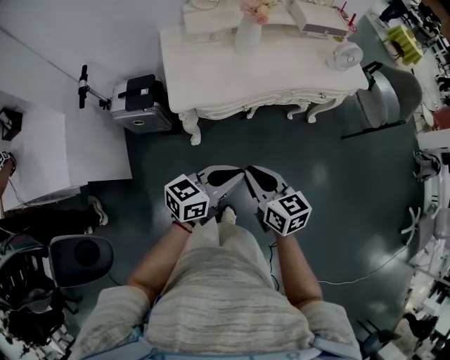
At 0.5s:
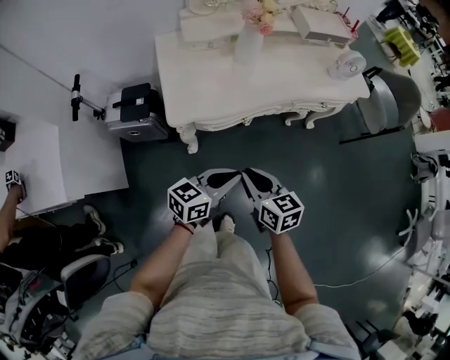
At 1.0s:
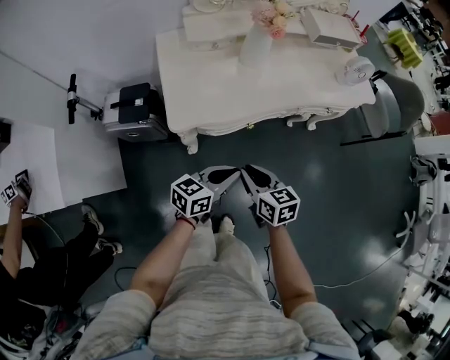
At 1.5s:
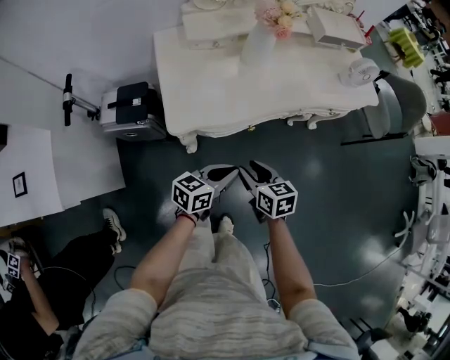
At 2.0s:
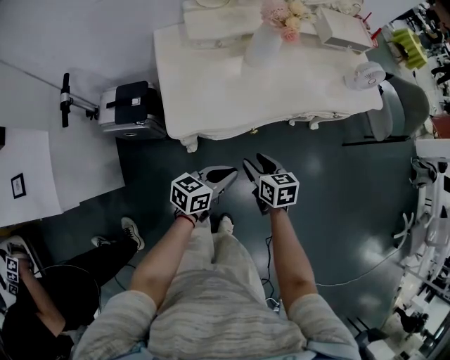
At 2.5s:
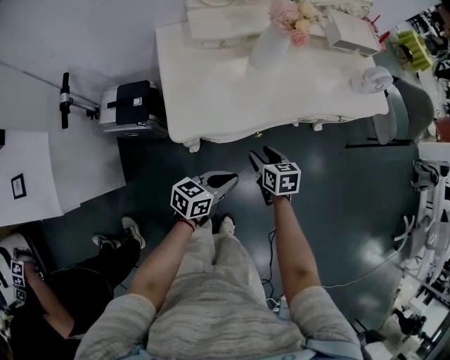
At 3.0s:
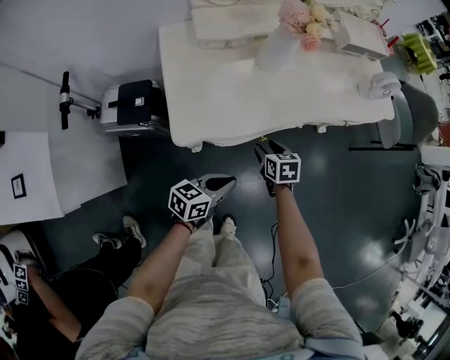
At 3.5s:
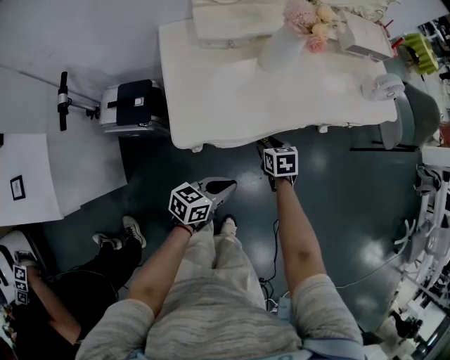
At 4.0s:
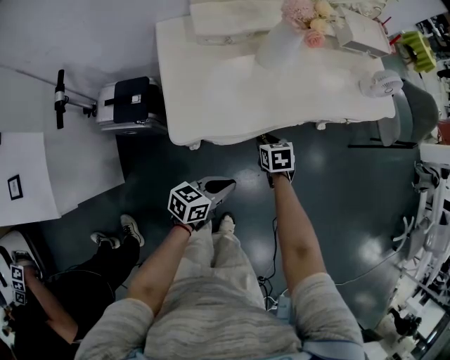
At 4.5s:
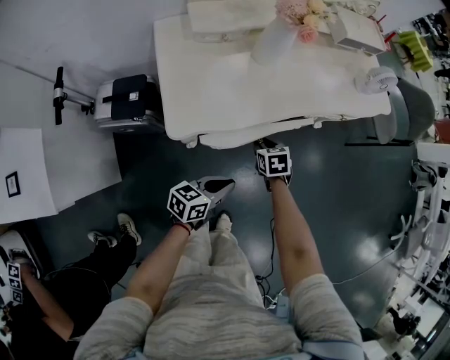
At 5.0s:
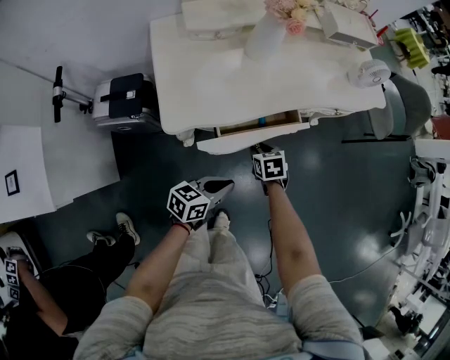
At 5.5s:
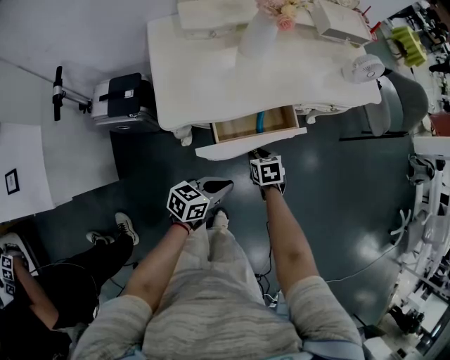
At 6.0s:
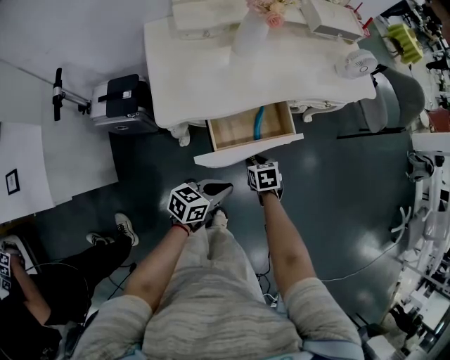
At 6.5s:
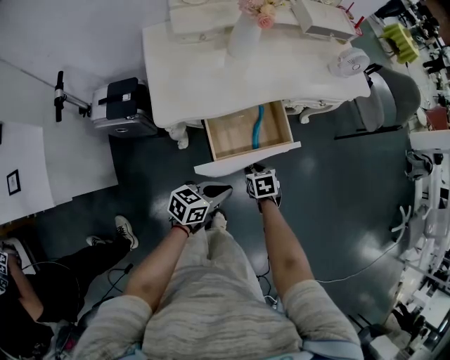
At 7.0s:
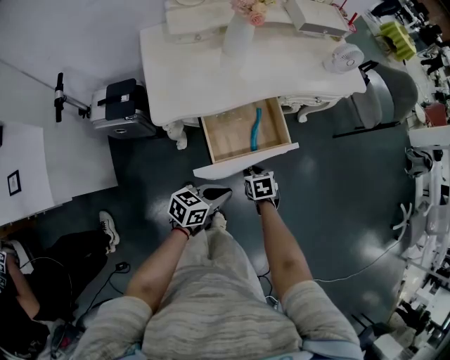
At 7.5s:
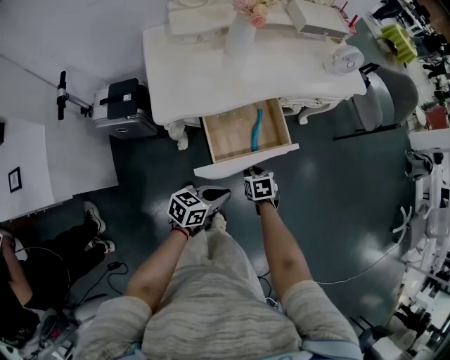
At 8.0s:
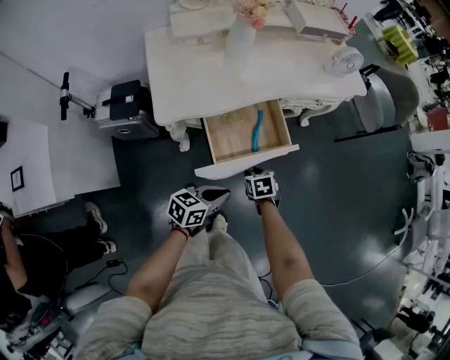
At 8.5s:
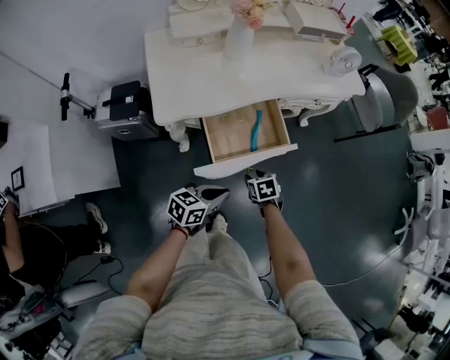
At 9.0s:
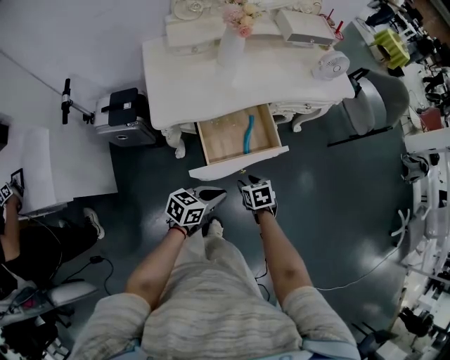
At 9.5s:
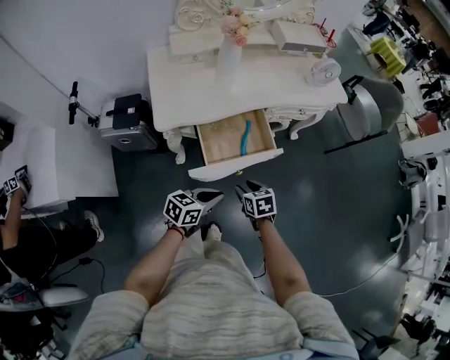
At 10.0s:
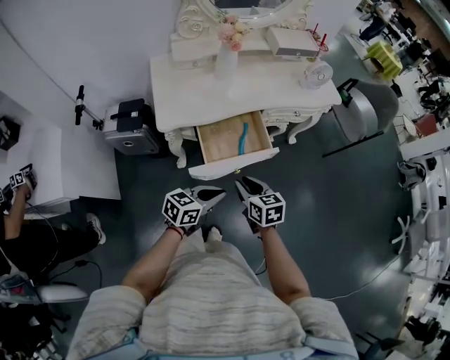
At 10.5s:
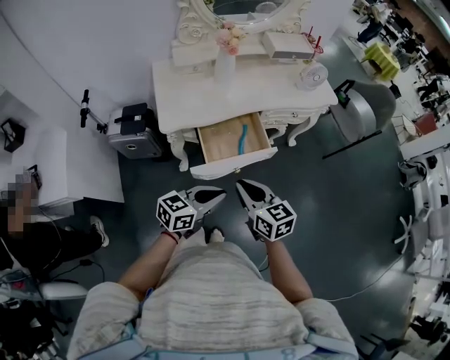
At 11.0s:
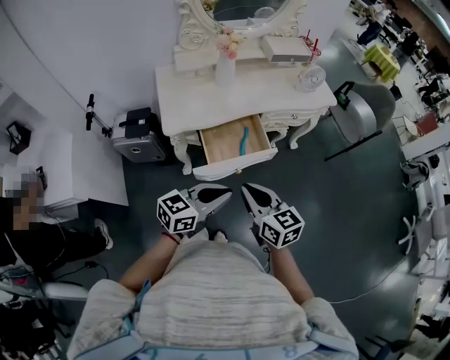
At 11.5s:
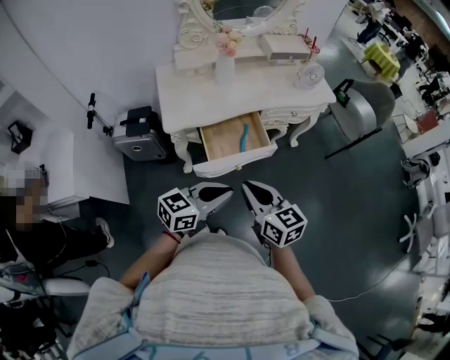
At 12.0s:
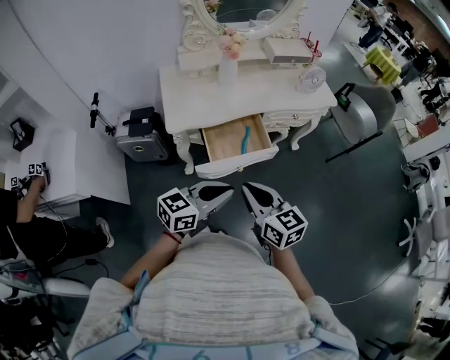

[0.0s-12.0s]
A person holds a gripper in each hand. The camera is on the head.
0.0s to 2.0s: The right gripper heads downward and forward, covering roughly 25 cm, and opens its fingers. The left gripper moves downward, forward and to the left, some 20 cm.
2.0s to 4.0s: The right gripper moves forward and downward, roughly 15 cm, and changes its angle by some 20 degrees, while the left gripper ends up about 5 cm from where it was.
4.0s to 6.0s: The left gripper is displaced to the right and backward by about 10 cm. The right gripper shifts some 15 cm backward and to the right.
6.0s to 8.0s: The right gripper changes place by some 5 cm.
8.0s to 10.0s: The right gripper is displaced upward by some 20 cm, and tilts its fingers some 30 degrees upward, while the left gripper shifts about 10 cm upward.
10.0s to 12.0s: The right gripper heads upward and backward, covering about 20 cm, turns by some 20 degrees, and closes up. Meanwhile the left gripper travels upward by approximately 15 cm.

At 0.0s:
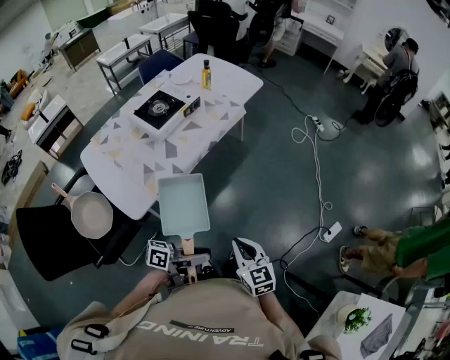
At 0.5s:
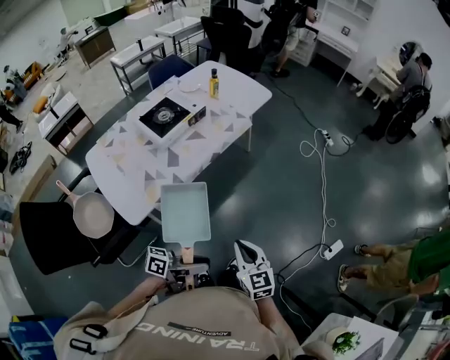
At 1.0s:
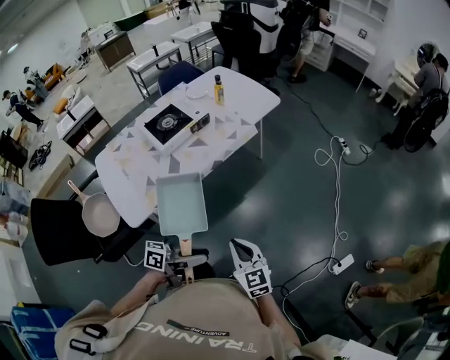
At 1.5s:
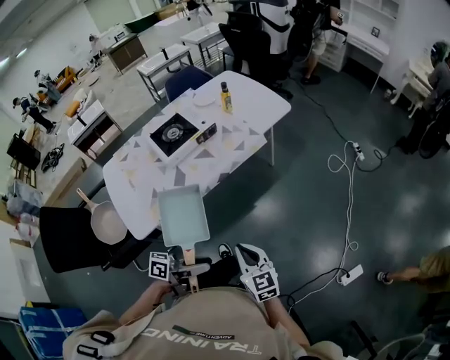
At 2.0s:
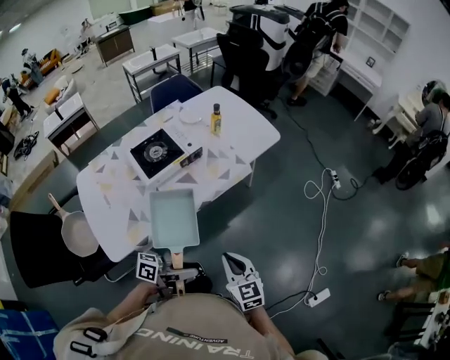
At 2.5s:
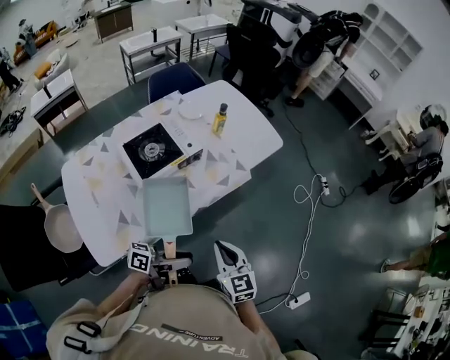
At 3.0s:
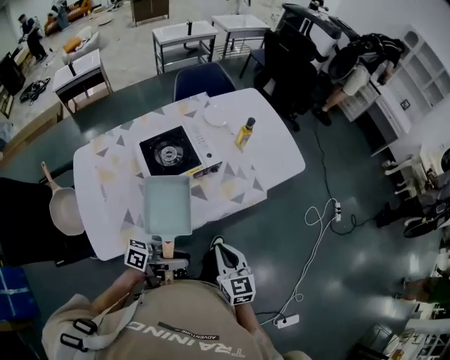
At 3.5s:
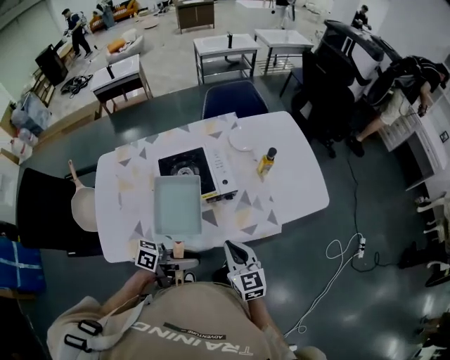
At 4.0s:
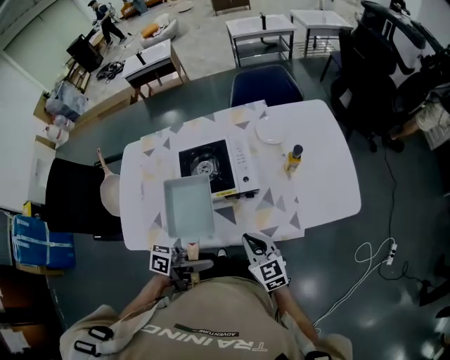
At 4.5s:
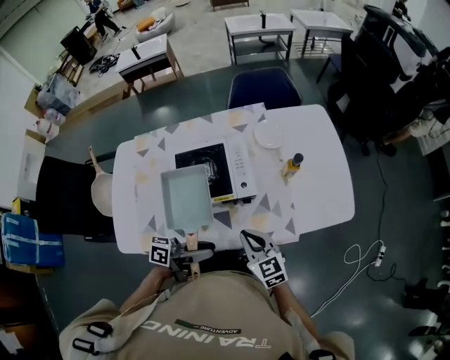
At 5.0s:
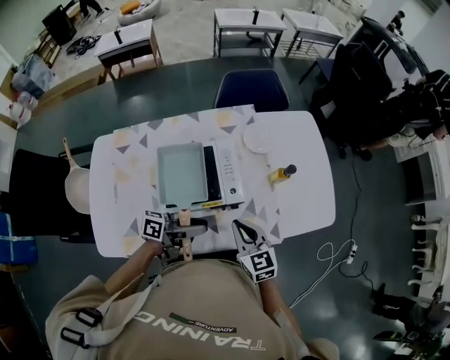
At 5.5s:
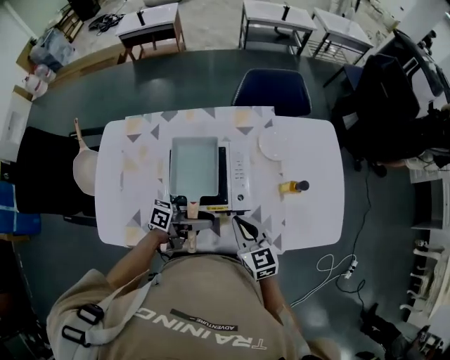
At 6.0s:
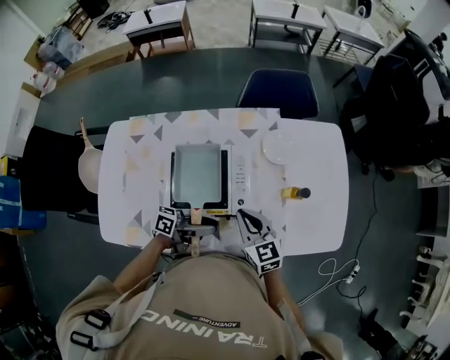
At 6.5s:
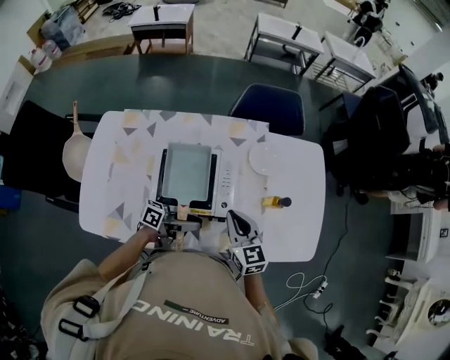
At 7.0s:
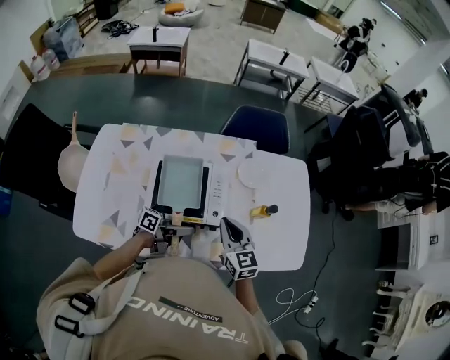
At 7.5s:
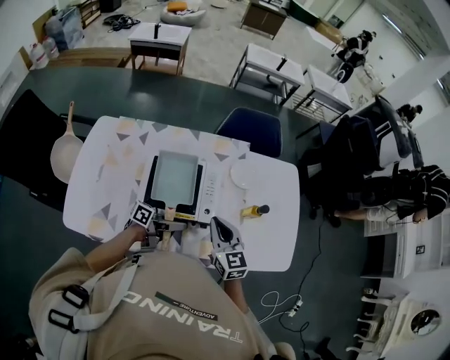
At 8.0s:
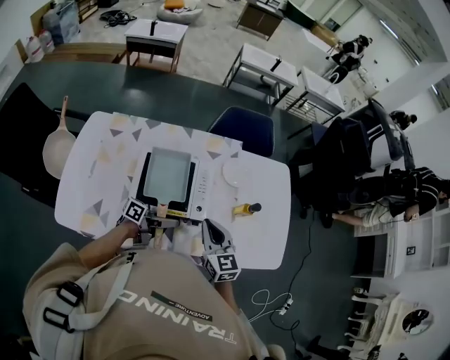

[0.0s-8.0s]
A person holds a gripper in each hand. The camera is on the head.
0.0s to 2.0s: The grippers both shift forward by roughly 25 cm.
2.0s to 4.0s: The left gripper ends up roughly 25 cm from where it was, and changes its angle by approximately 30 degrees. Meanwhile the right gripper changes place by about 35 cm, and rotates roughly 40 degrees.
4.0s to 6.0s: The grippers both shift forward by about 20 cm.
6.0s to 8.0s: The right gripper heads upward, covering some 5 cm.

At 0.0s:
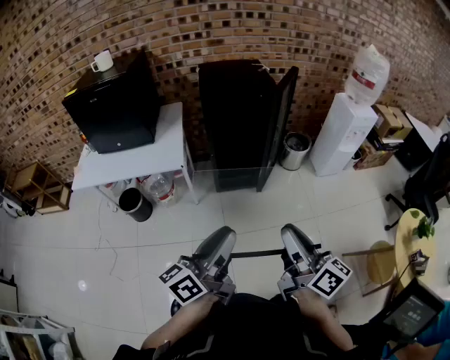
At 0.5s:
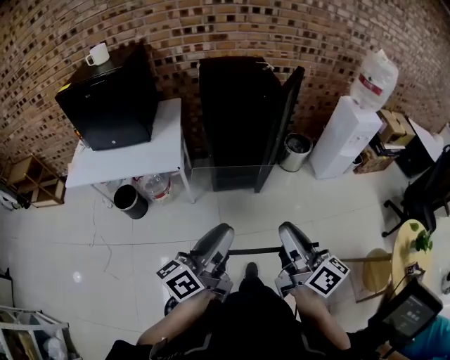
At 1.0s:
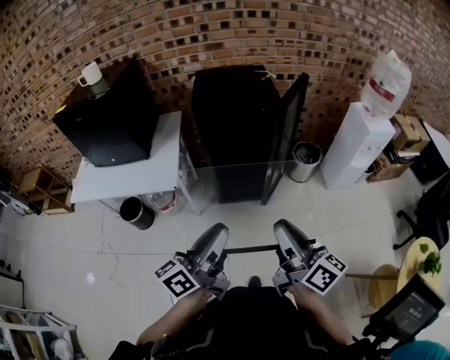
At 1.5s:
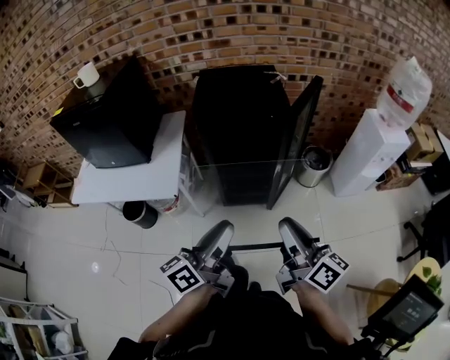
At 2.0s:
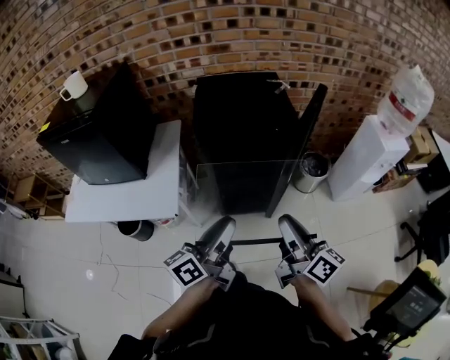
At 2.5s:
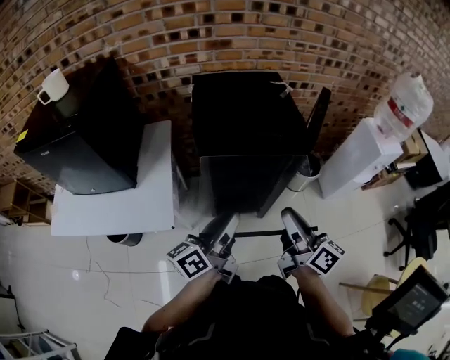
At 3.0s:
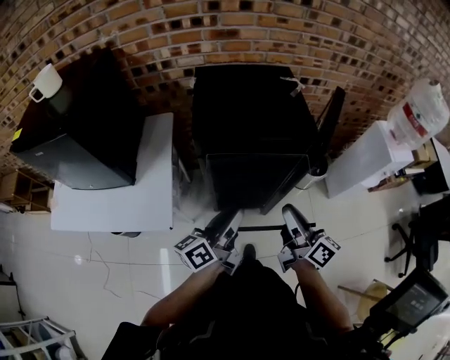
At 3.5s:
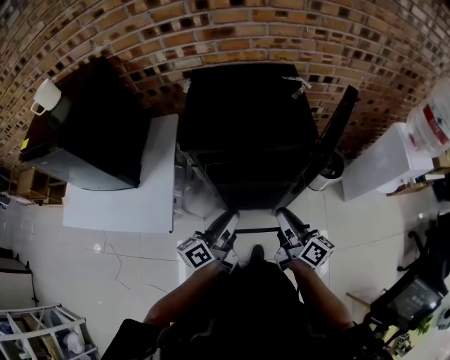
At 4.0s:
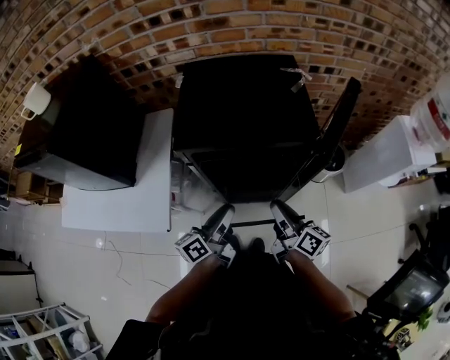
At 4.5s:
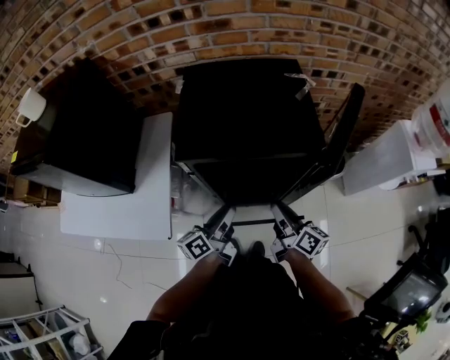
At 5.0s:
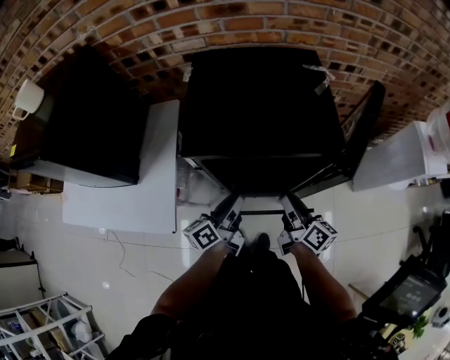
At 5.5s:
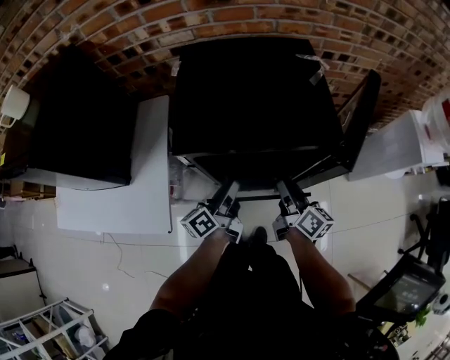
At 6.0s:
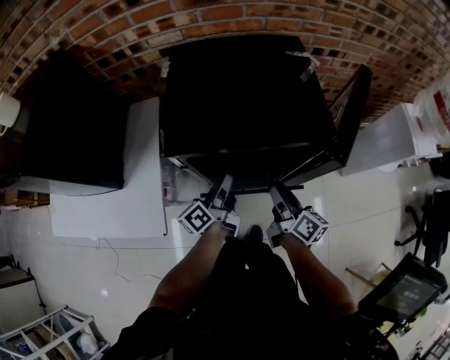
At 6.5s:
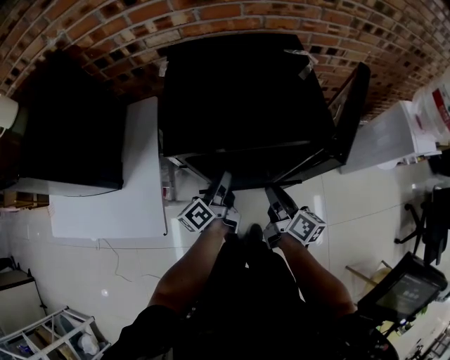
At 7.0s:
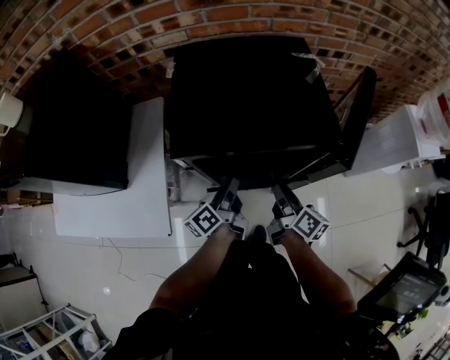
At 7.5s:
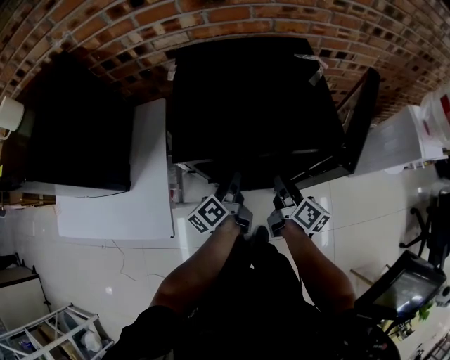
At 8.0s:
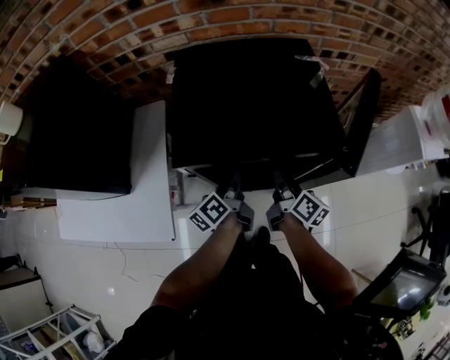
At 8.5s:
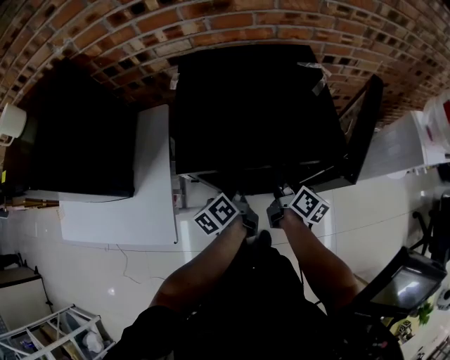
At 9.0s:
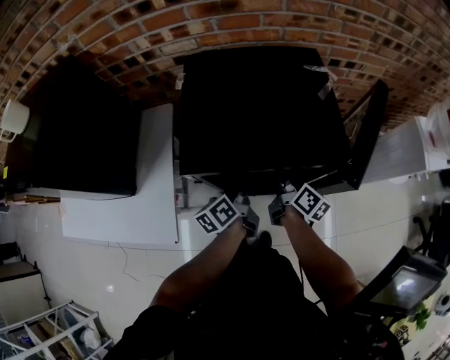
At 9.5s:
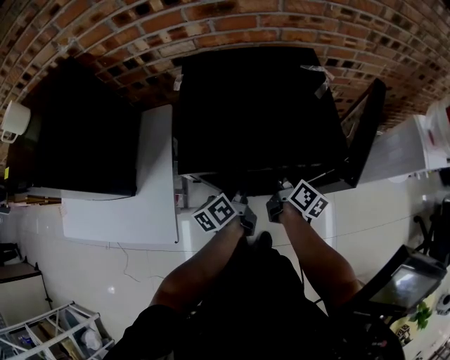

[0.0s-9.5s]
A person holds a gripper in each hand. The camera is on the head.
0.0s to 2.0s: The two grippers go roughly 35 cm forward.
2.0s to 4.0s: Both grippers move forward and downward, approximately 25 cm.
4.0s to 5.5s: The two grippers go some 10 cm forward.
5.5s to 7.5s: There are only small adjustments of the grippers.
7.5s to 9.5s: The right gripper is displaced forward by roughly 5 cm.
